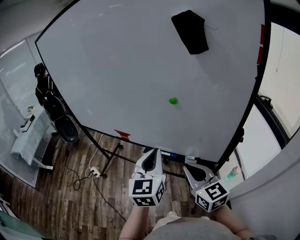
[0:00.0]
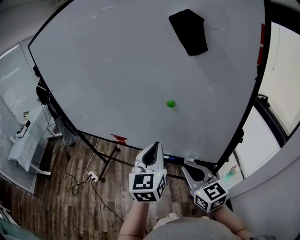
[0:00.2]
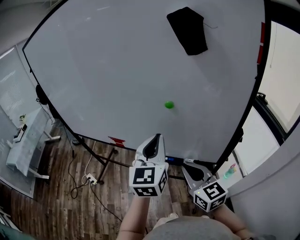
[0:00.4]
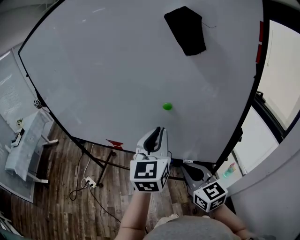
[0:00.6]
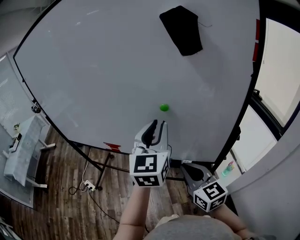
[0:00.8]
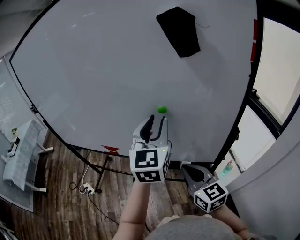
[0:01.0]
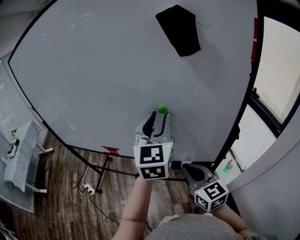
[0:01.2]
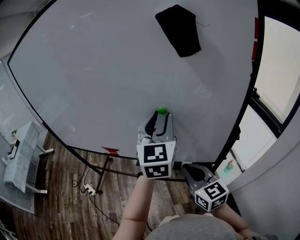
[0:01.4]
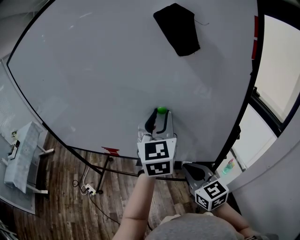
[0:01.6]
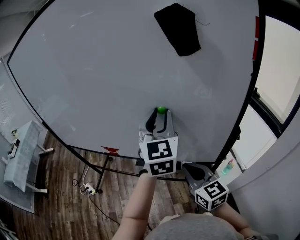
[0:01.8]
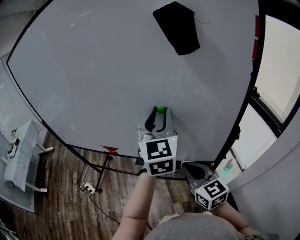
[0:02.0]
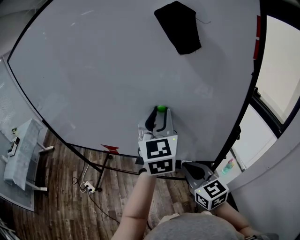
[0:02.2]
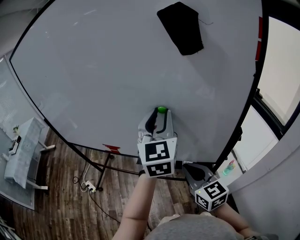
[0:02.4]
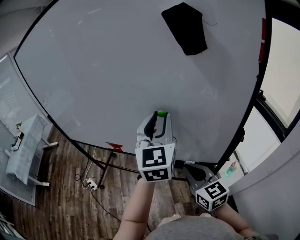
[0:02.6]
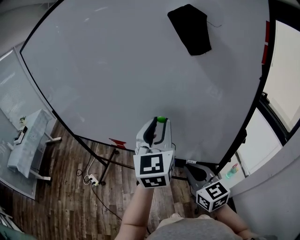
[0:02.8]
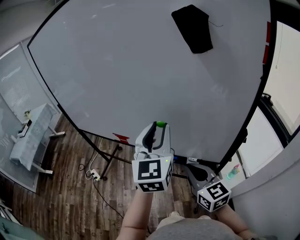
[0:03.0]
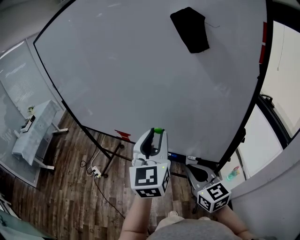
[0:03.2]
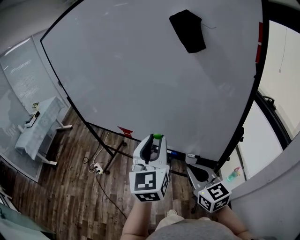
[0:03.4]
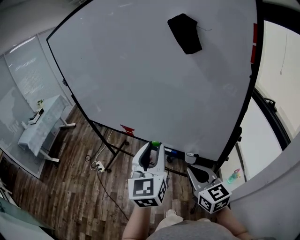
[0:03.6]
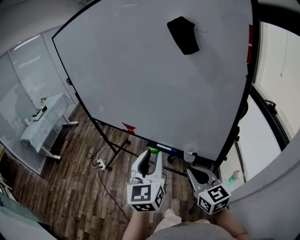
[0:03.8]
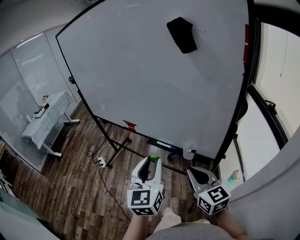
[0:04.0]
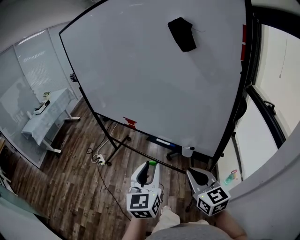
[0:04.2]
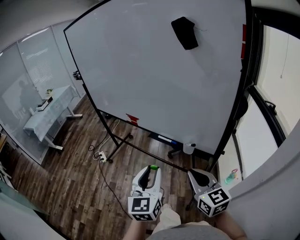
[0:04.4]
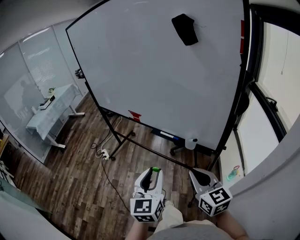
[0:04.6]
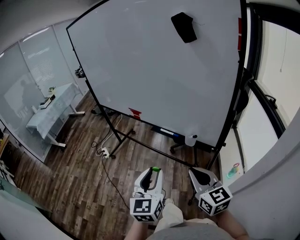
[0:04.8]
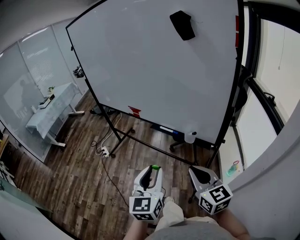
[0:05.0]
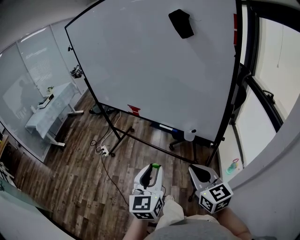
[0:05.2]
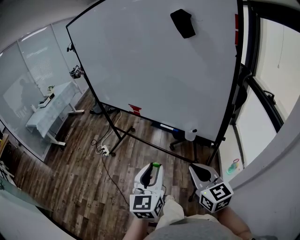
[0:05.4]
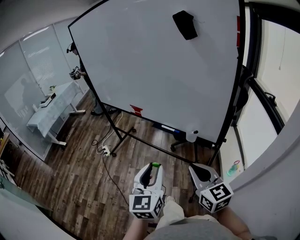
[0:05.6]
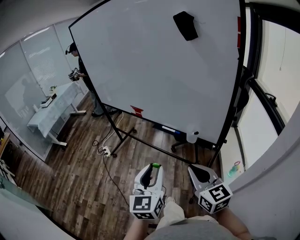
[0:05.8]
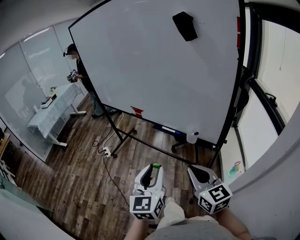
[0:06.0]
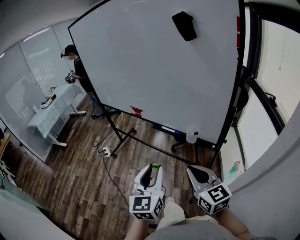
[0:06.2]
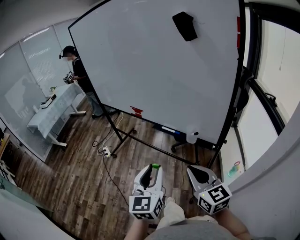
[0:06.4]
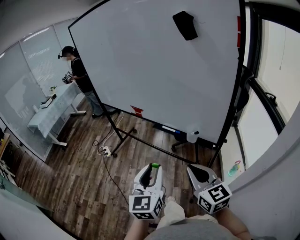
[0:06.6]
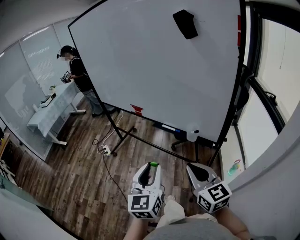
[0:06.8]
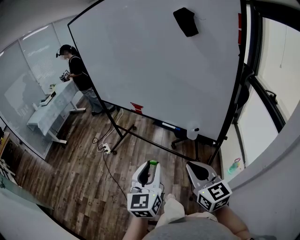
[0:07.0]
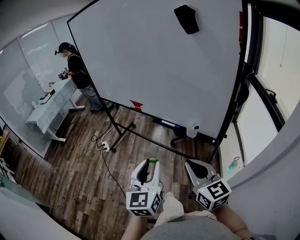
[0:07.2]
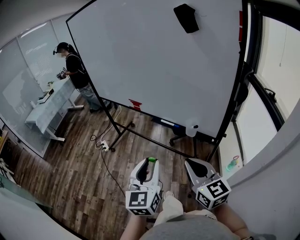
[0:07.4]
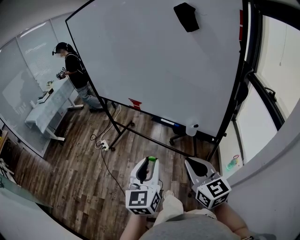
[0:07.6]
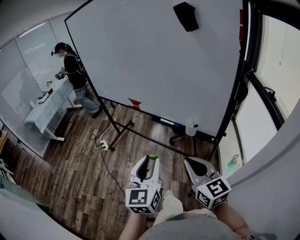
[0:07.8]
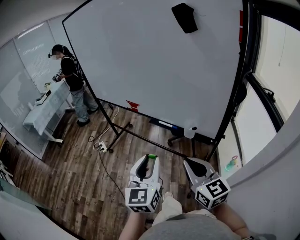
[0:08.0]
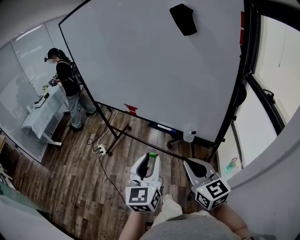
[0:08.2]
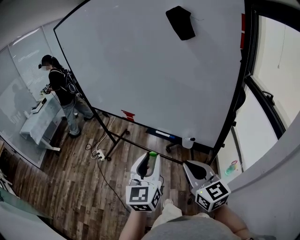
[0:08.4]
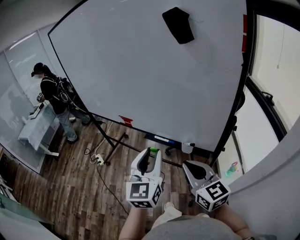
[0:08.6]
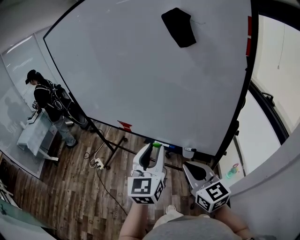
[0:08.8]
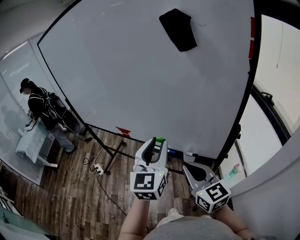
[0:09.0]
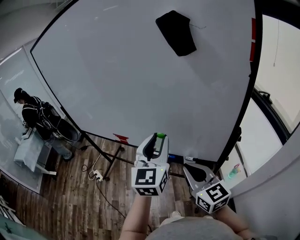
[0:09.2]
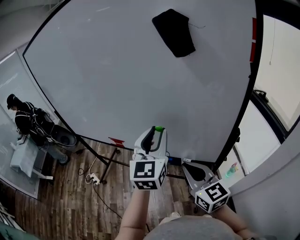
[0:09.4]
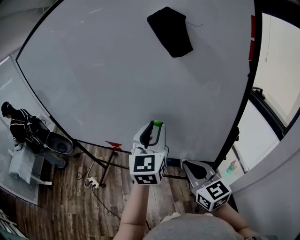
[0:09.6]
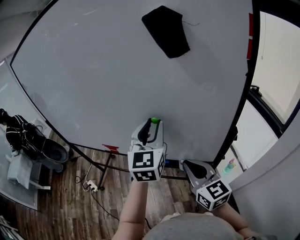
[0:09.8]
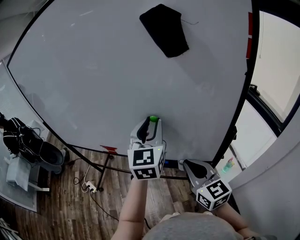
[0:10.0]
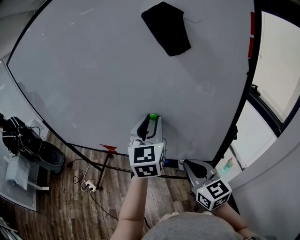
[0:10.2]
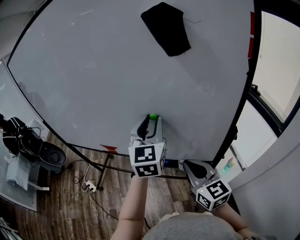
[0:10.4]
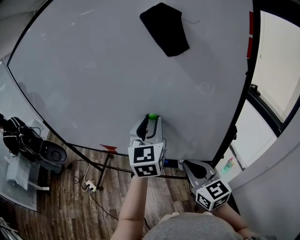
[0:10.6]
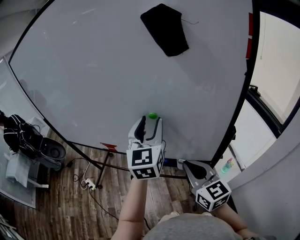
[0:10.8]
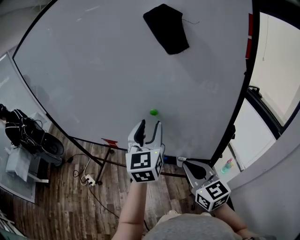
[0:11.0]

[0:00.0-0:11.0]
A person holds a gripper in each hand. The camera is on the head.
0:00.0 to 0:01.6: The right gripper changes place by approximately 5 cm; the left gripper goes some 20 cm forward, upward and to the right, and opens its fingers.
0:01.6 to 0:03.2: The left gripper goes roughly 10 cm backward and to the left.
0:03.2 to 0:04.8: The left gripper travels backward and downward by approximately 30 cm. Meanwhile the right gripper shifts approximately 15 cm backward.
0:04.8 to 0:07.8: The grippers move only a little.
0:07.8 to 0:09.4: Both grippers travel together forward, approximately 25 cm. The left gripper turns by roughly 20 degrees.

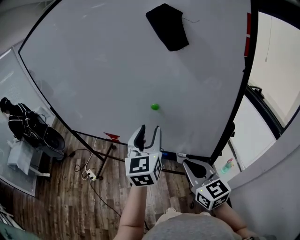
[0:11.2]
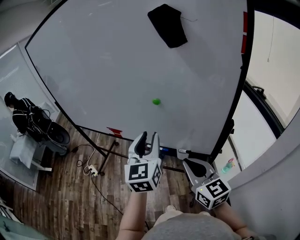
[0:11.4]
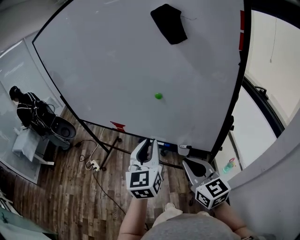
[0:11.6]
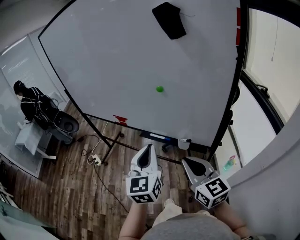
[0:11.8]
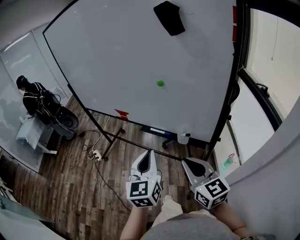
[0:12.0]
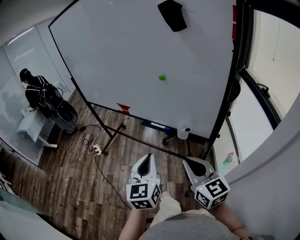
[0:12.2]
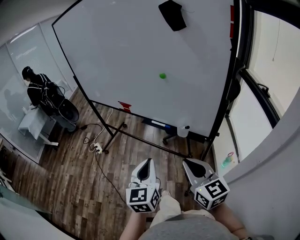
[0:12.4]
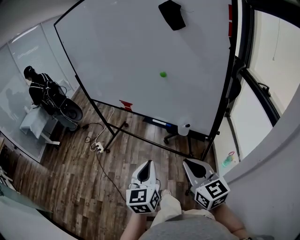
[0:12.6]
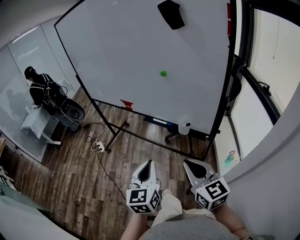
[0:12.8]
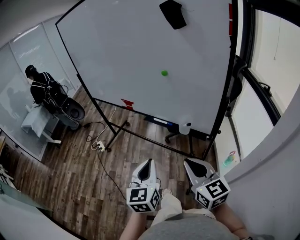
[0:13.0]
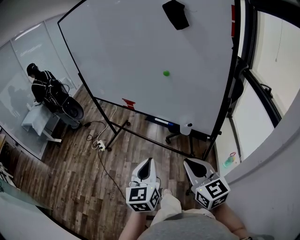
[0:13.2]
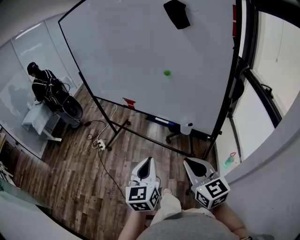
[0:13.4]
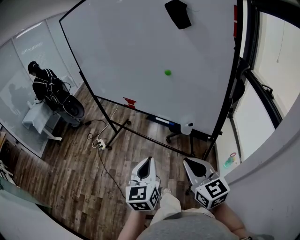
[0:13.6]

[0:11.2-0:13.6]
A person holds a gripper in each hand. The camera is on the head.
0:11.2 to 0:12.4: The left gripper is displaced backward and downward by approximately 30 cm, and closes up; the right gripper travels backward by about 15 cm.
0:12.4 to 0:13.6: There are only small adjustments of the grippers.

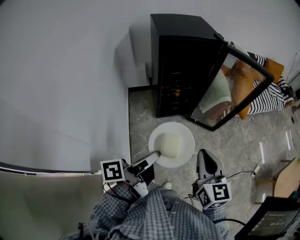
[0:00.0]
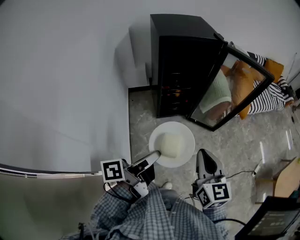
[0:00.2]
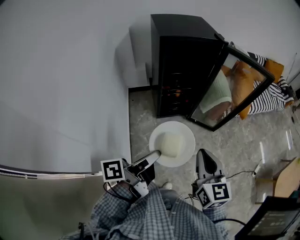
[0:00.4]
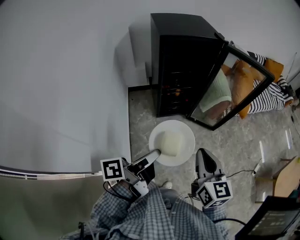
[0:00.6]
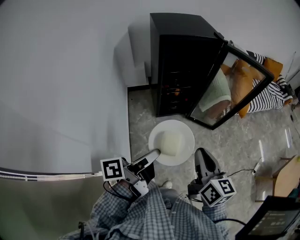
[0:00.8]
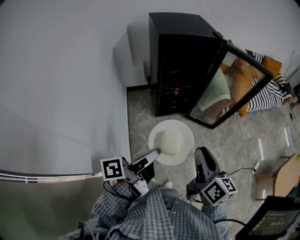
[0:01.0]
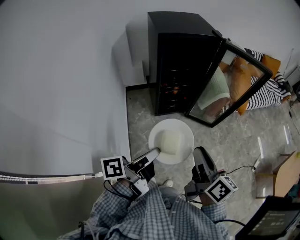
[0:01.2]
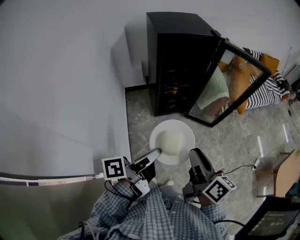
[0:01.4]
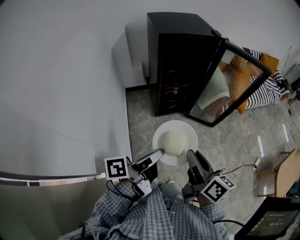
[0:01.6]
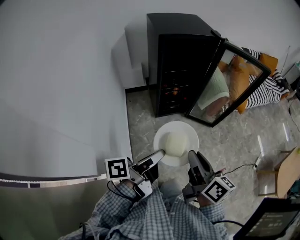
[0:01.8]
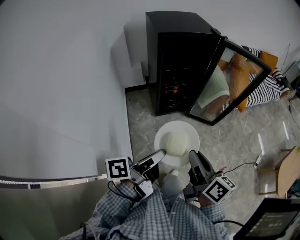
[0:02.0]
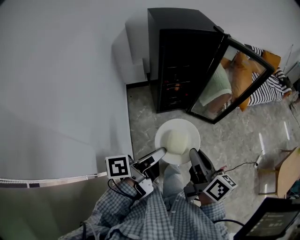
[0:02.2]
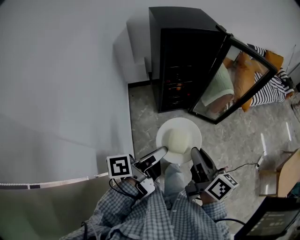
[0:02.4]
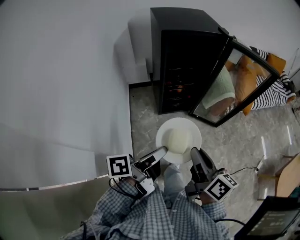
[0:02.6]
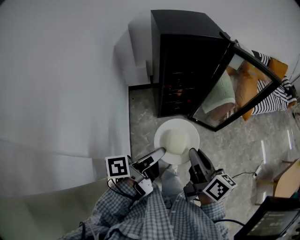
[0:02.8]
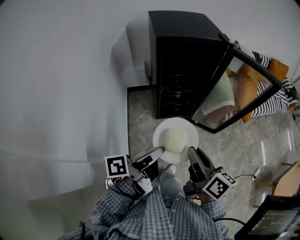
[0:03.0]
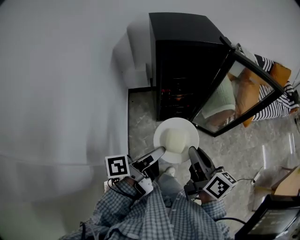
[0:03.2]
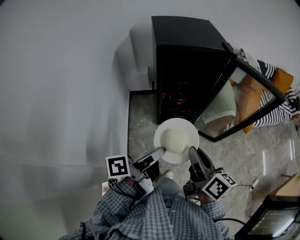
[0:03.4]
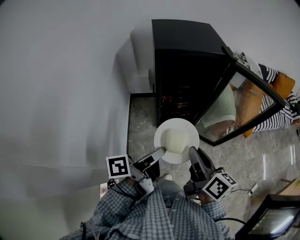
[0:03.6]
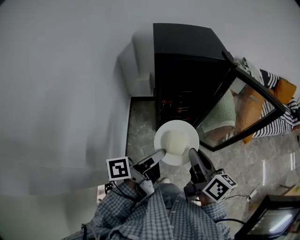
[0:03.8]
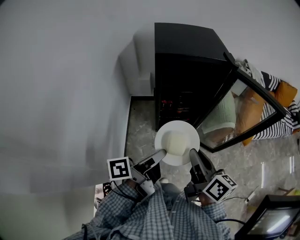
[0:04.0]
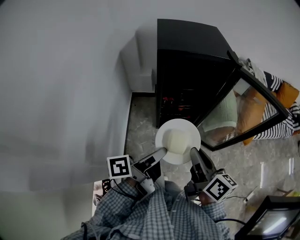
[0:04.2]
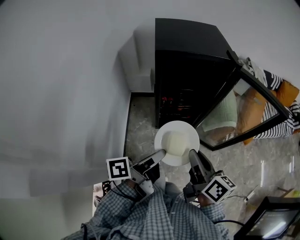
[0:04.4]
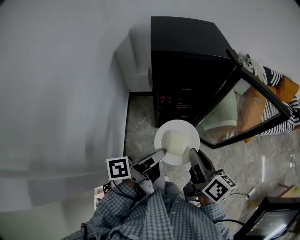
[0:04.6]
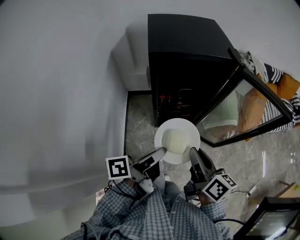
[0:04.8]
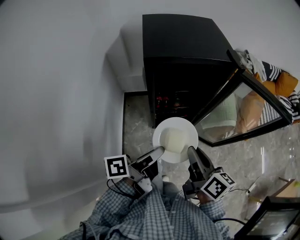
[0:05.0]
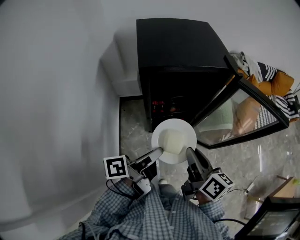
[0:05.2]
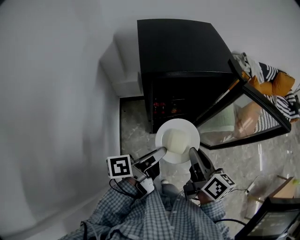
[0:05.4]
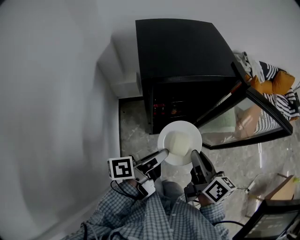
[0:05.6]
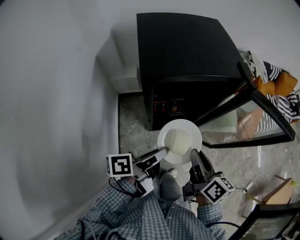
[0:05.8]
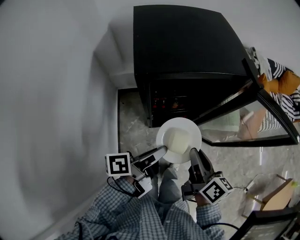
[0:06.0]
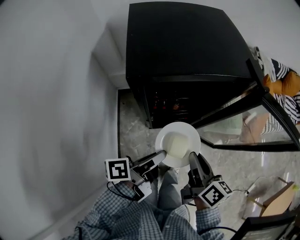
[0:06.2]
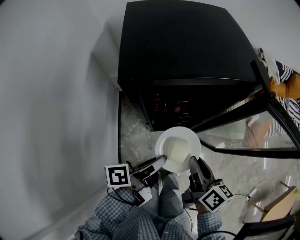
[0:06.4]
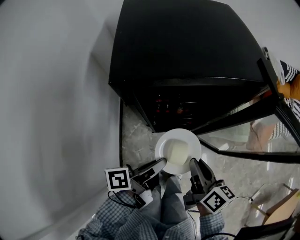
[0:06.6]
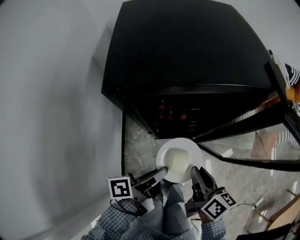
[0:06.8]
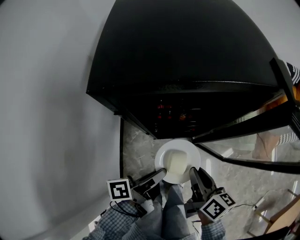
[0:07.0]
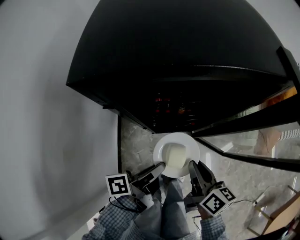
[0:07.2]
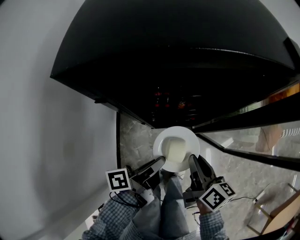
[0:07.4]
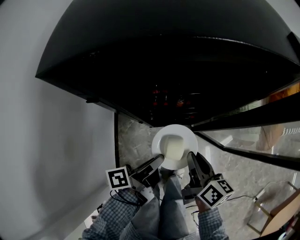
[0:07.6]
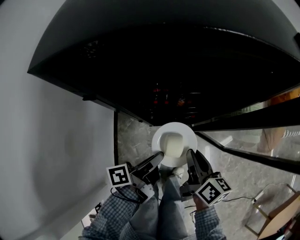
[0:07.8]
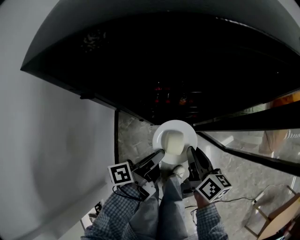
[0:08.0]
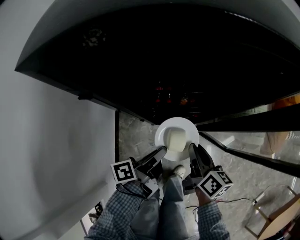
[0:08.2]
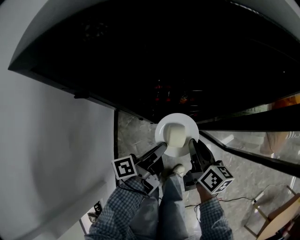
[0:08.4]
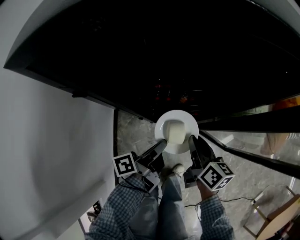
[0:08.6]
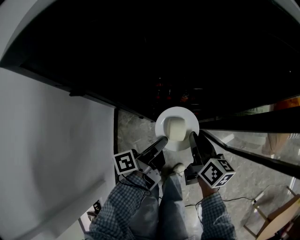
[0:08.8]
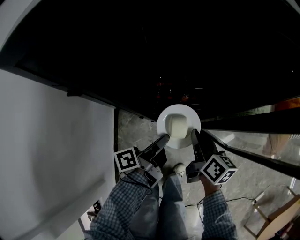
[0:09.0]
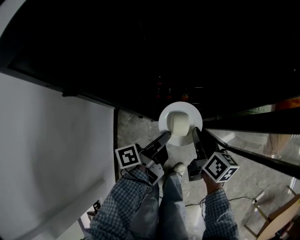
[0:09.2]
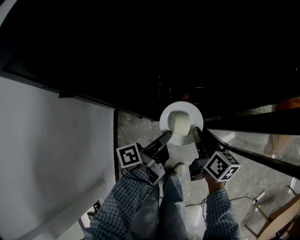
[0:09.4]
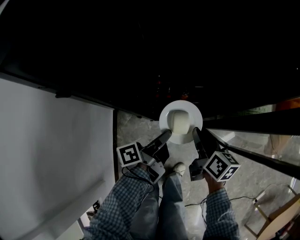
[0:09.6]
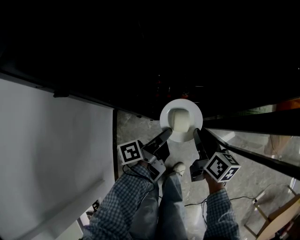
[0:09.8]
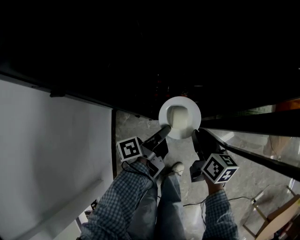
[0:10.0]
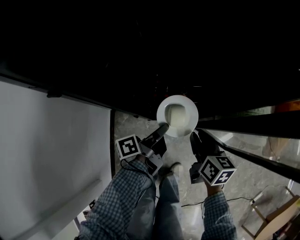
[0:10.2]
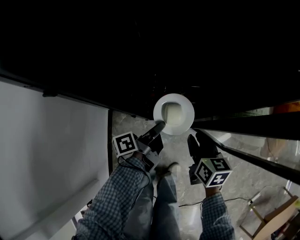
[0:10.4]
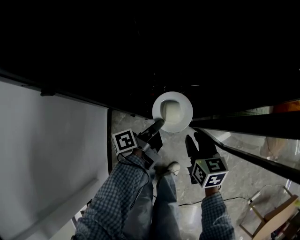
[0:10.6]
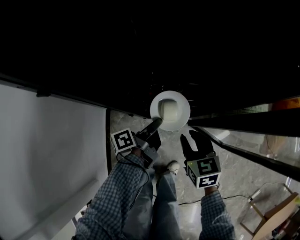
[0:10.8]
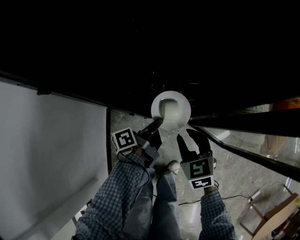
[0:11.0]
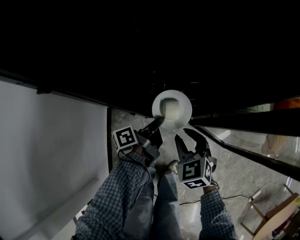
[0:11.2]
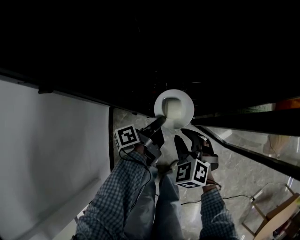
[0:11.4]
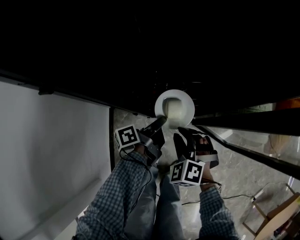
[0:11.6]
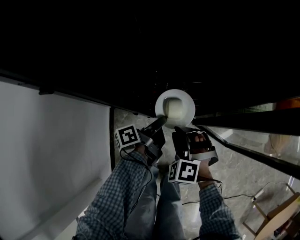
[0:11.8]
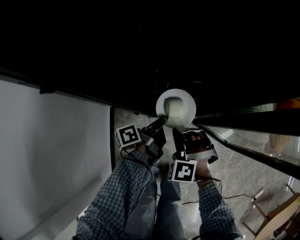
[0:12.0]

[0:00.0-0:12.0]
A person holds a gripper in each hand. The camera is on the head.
0:00.0 to 0:01.6: The right gripper shifts by roughly 5 cm, and rolls clockwise, seen from behind, by roughly 40 degrees.
0:01.6 to 0:03.0: The right gripper shifts by roughly 10 cm.
0:03.0 to 0:04.4: The right gripper moves about 10 cm.
0:04.4 to 0:06.0: The right gripper shifts by some 20 cm.
0:06.0 to 0:07.6: The right gripper moves downward, about 20 cm.
0:07.6 to 0:09.0: The right gripper heads downward, covering about 5 cm.
0:09.0 to 0:10.4: The right gripper shifts by approximately 5 cm, and changes its angle by some 20 degrees.
0:10.4 to 0:12.0: The right gripper shifts by approximately 10 cm, twists approximately 100 degrees counterclockwise, seen from behind, and closes.
